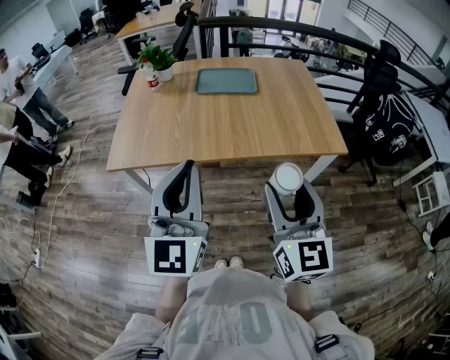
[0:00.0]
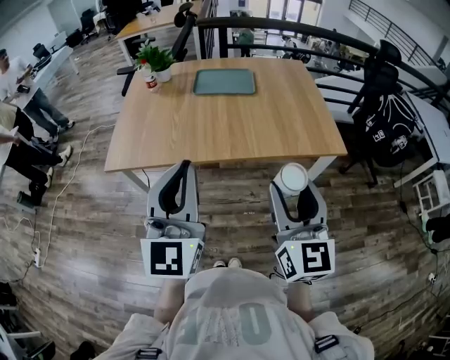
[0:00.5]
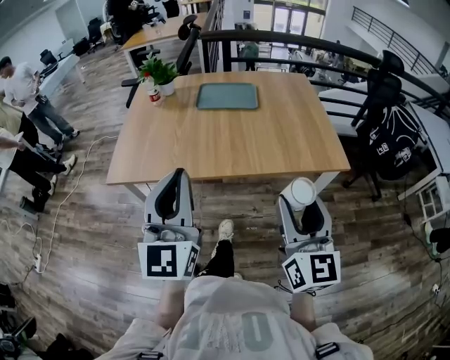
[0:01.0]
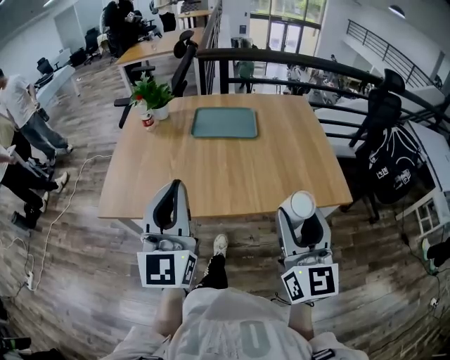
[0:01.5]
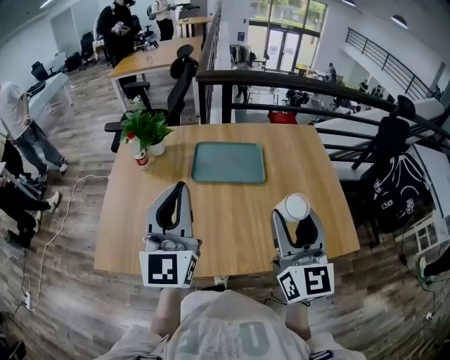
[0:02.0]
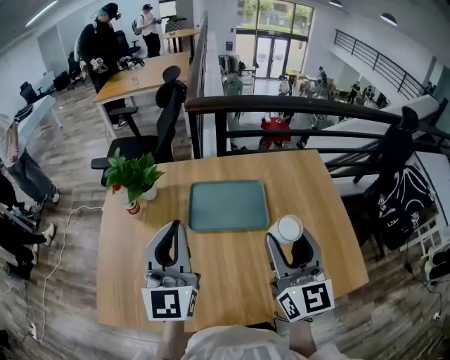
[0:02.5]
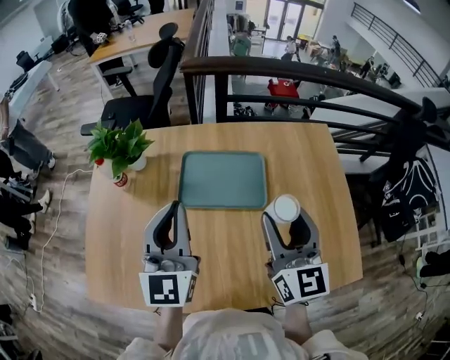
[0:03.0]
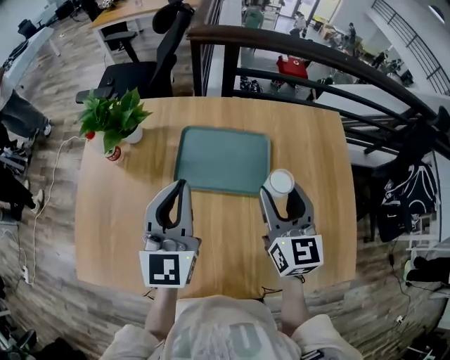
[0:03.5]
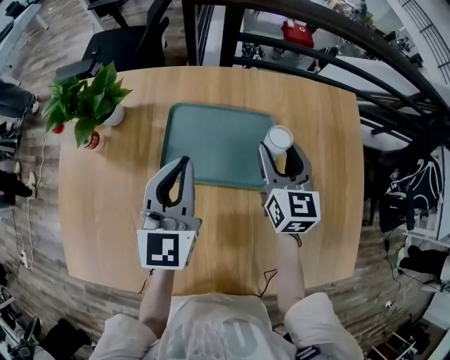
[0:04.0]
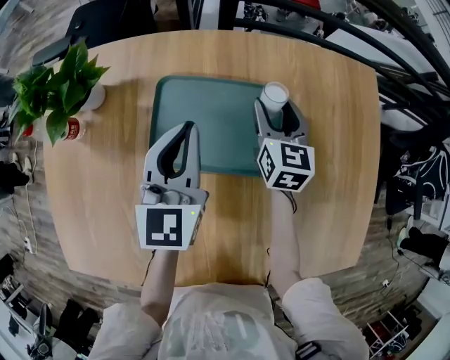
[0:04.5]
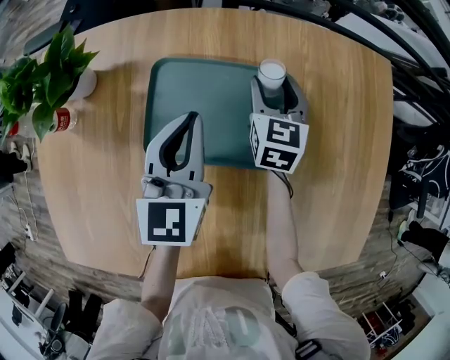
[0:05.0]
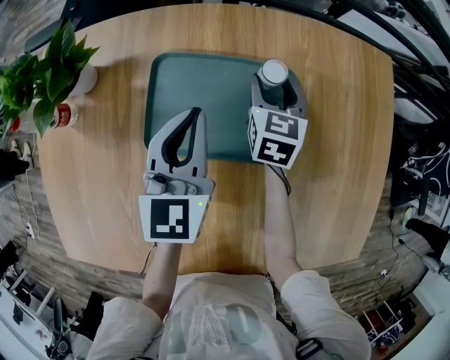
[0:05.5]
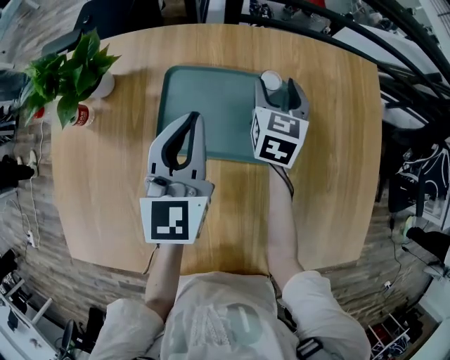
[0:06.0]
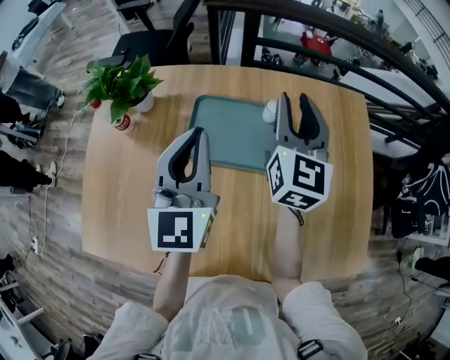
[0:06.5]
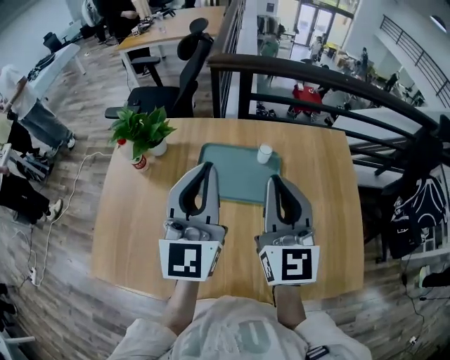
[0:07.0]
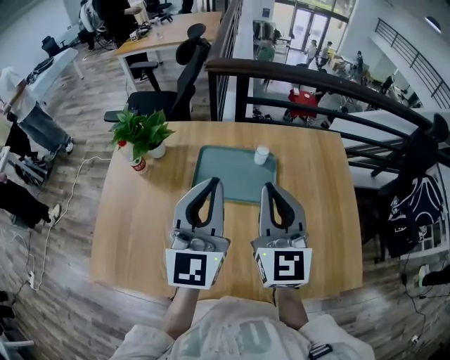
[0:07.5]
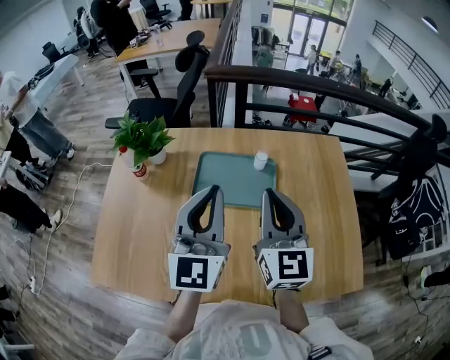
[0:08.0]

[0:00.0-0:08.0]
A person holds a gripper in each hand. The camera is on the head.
0:00.0 to 0:02.0: The grippers both shift forward by approximately 35 cm.
0:02.0 to 0:04.0: Both grippers travel together forward and downward, roughly 40 cm. The right gripper swivels approximately 30 degrees. Meanwhile the left gripper swivels roughly 30 degrees.
0:04.0 to 0:06.0: The left gripper reaches approximately 10 cm downward, then returns, while the right gripper is displaced forward and downward by approximately 10 cm.
0:06.0 to 0:08.0: The left gripper goes approximately 25 cm upward and backward, and turns by about 20 degrees, while the right gripper shifts roughly 35 cm backward and upward, swivels approximately 30 degrees, and closes its fingers.

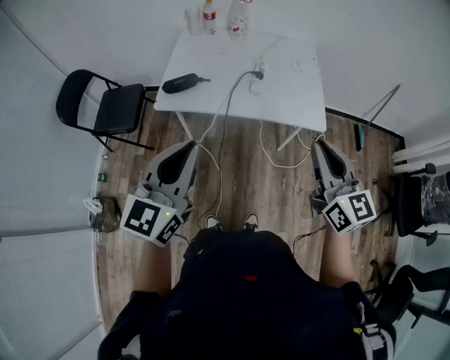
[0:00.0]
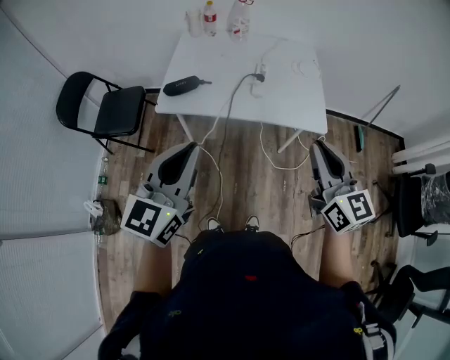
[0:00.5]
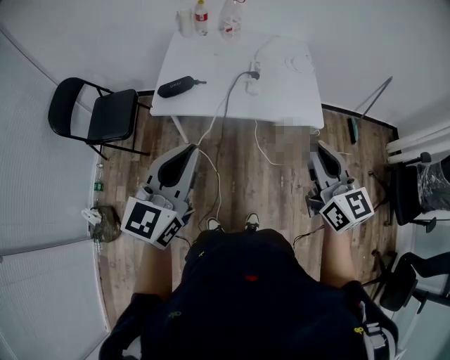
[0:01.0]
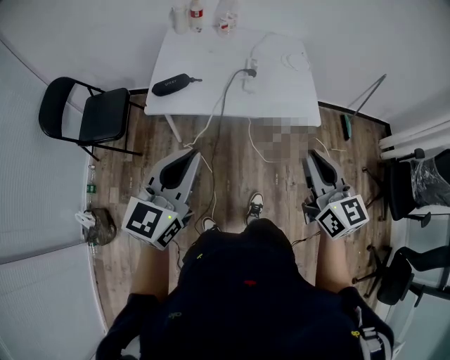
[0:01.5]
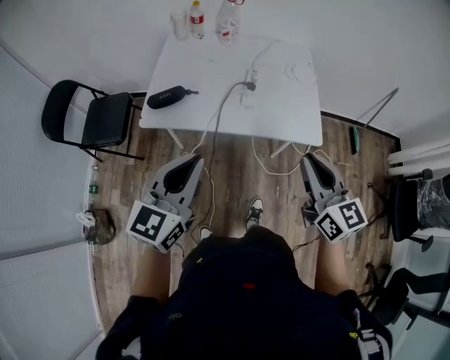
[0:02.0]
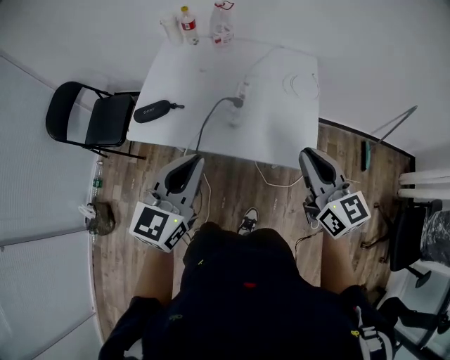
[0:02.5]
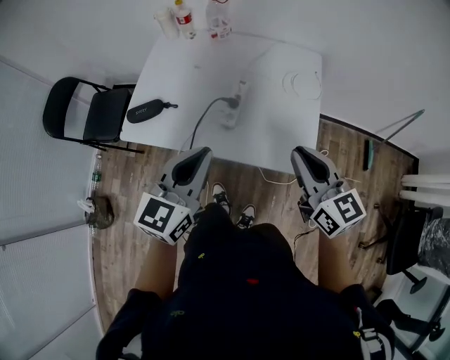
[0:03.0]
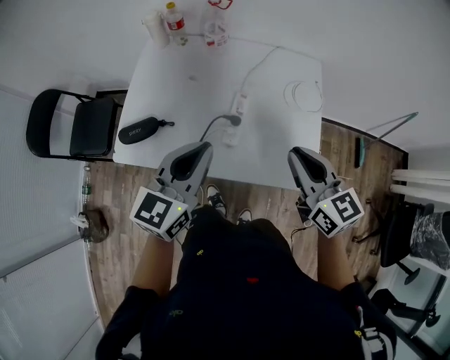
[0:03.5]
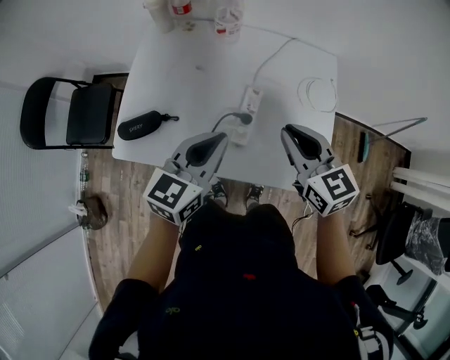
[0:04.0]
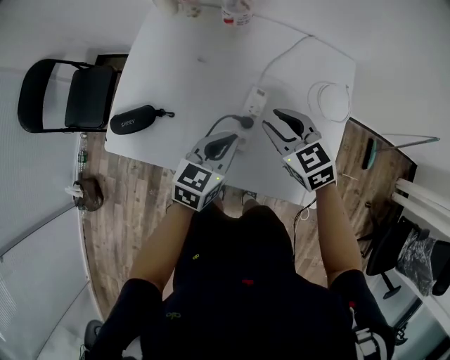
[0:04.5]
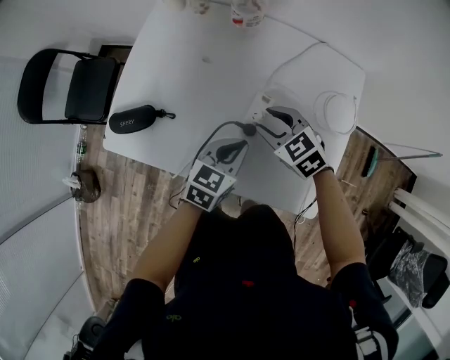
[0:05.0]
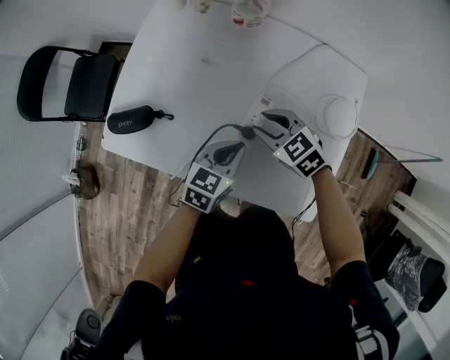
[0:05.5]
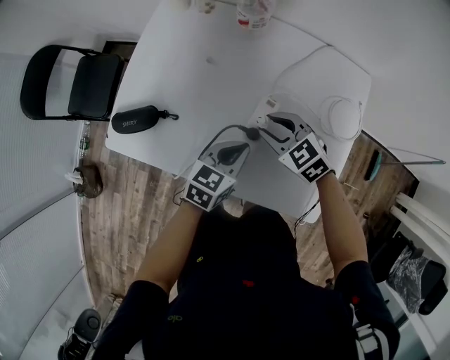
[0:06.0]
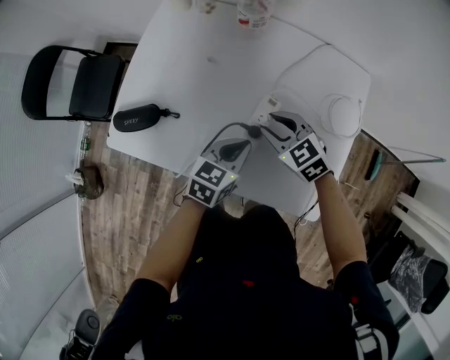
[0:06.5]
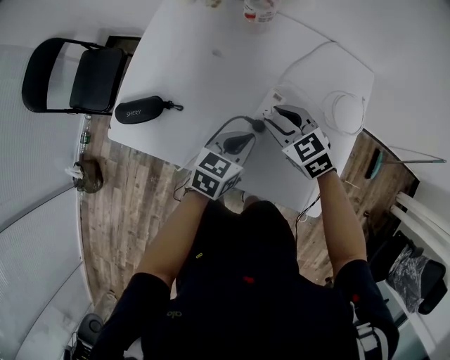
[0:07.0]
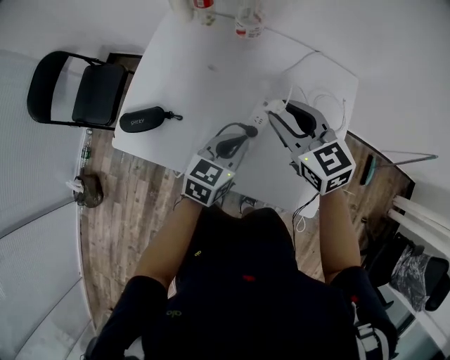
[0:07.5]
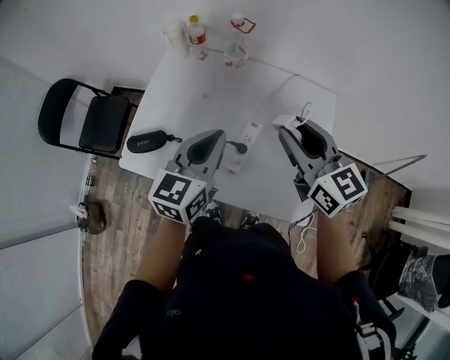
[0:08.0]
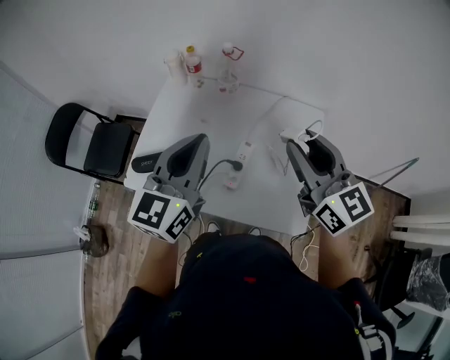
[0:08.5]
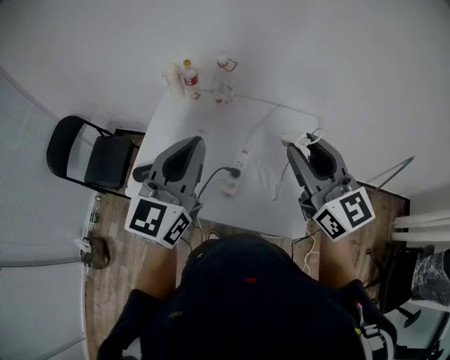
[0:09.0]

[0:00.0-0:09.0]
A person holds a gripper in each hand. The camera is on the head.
0:00.0 to 0:02.0: The right gripper heads forward, covering some 5 cm; the left gripper moves forward and downward, about 10 cm.
0:02.0 to 0:04.5: The left gripper goes about 40 cm forward, downward and to the right, and turns by some 20 degrees. The right gripper goes roughly 50 cm forward and downward, and changes its angle by about 40 degrees.
0:04.5 to 0:07.0: The grippers both shift downward by some 5 cm.
0:07.0 to 0:09.0: Both grippers travel together upward, roughly 40 cm. The left gripper points its fingers some 40 degrees further upward, while the right gripper tilts its fingers some 40 degrees upward.

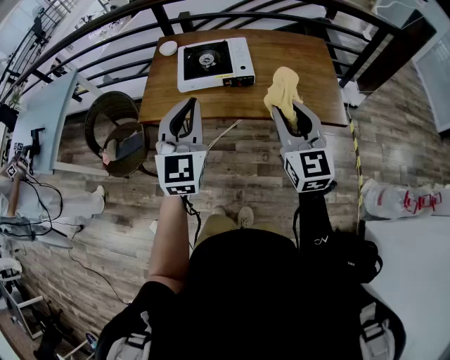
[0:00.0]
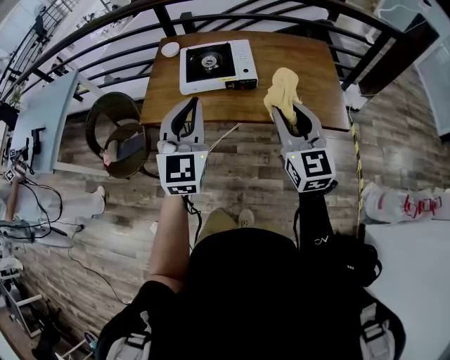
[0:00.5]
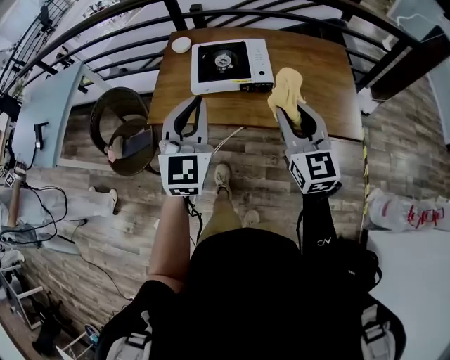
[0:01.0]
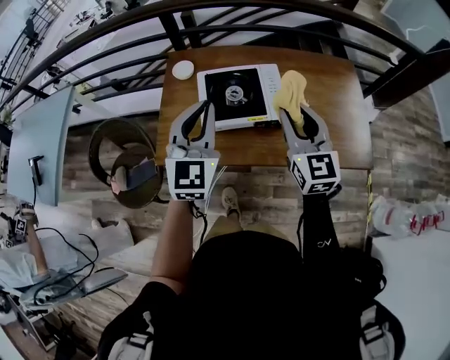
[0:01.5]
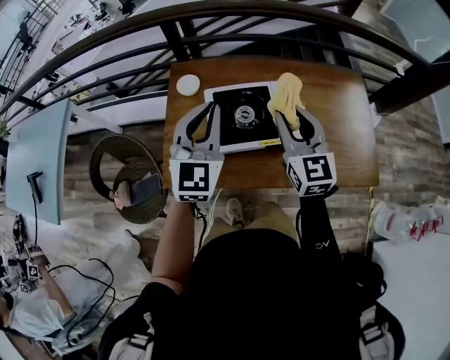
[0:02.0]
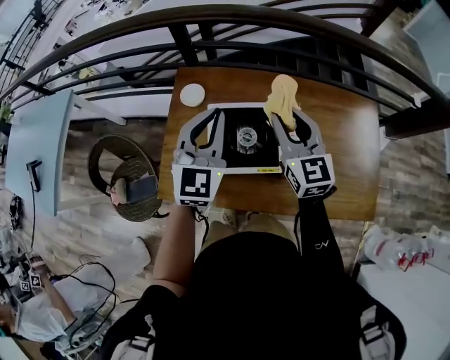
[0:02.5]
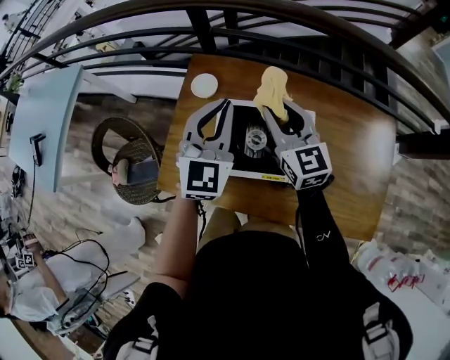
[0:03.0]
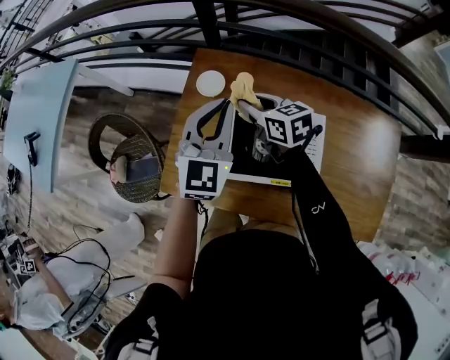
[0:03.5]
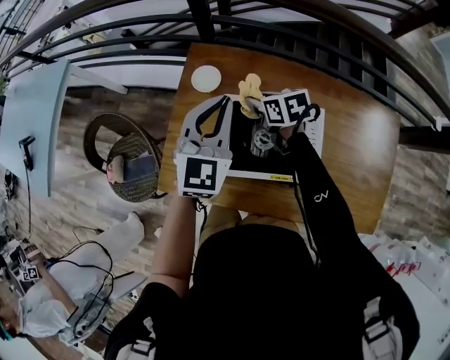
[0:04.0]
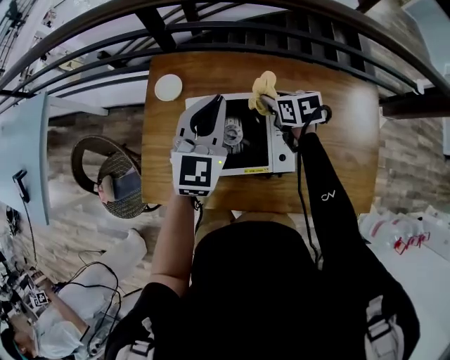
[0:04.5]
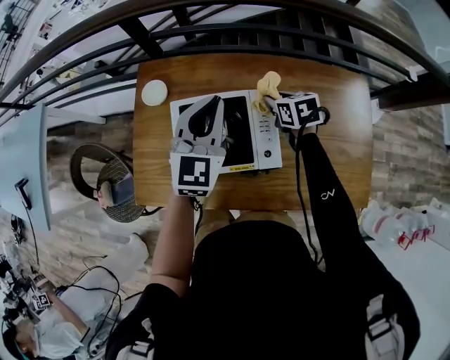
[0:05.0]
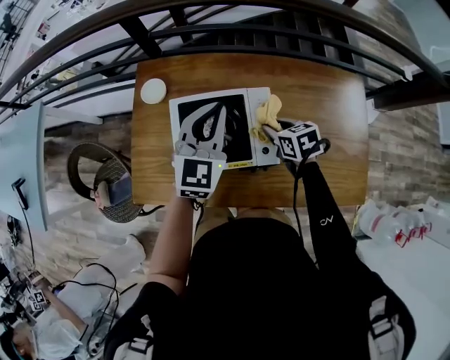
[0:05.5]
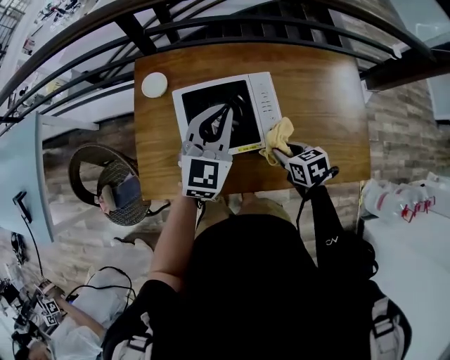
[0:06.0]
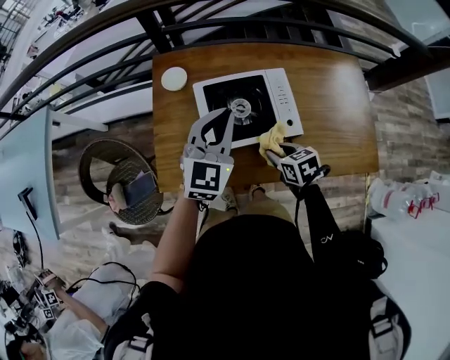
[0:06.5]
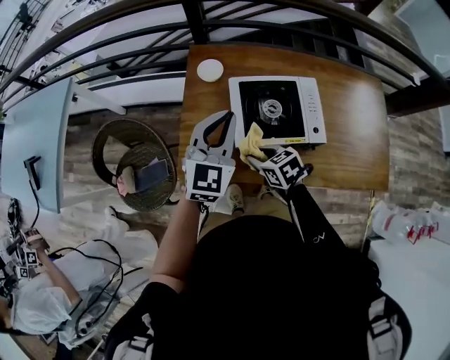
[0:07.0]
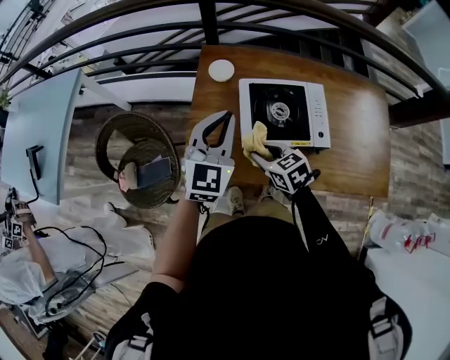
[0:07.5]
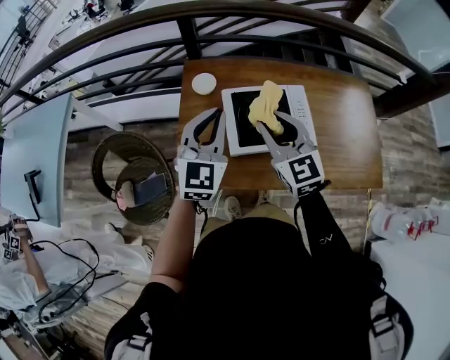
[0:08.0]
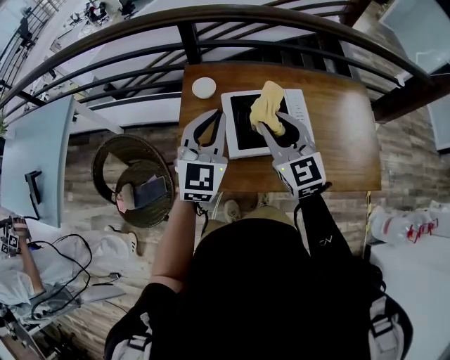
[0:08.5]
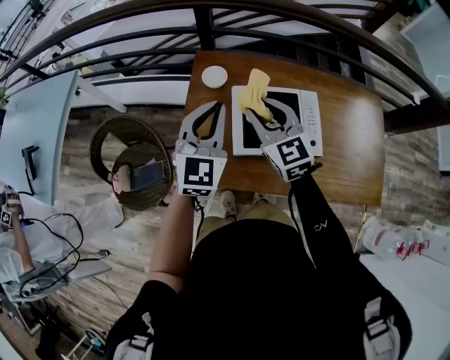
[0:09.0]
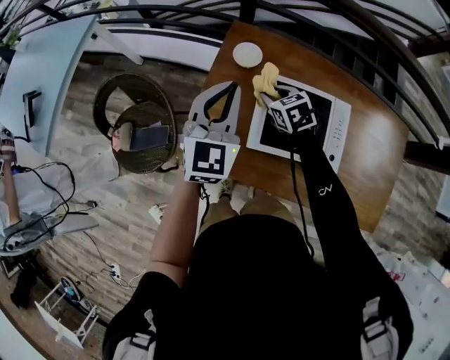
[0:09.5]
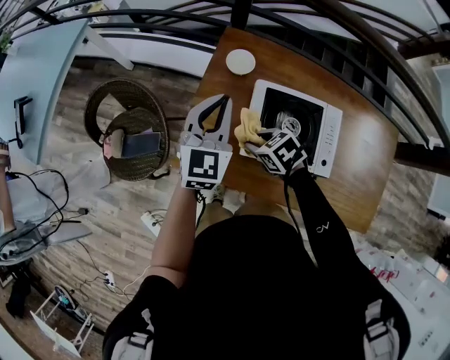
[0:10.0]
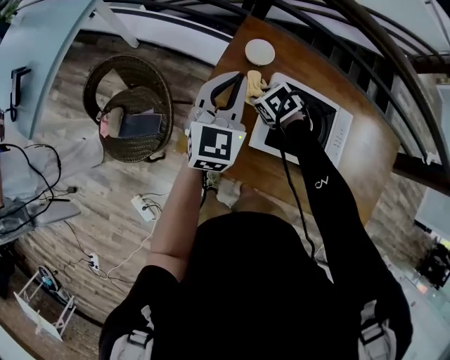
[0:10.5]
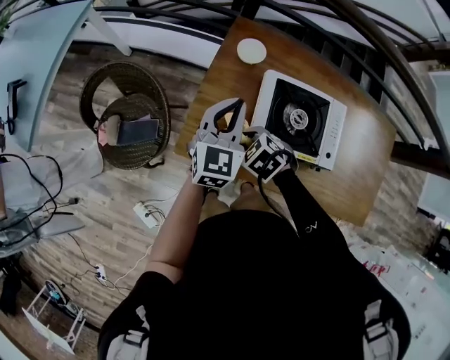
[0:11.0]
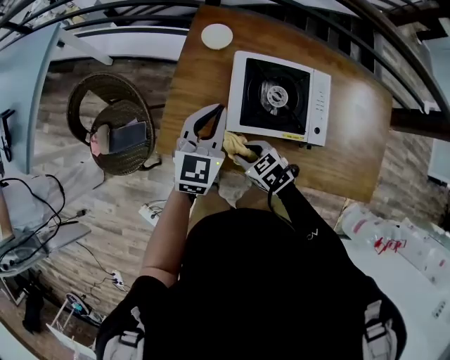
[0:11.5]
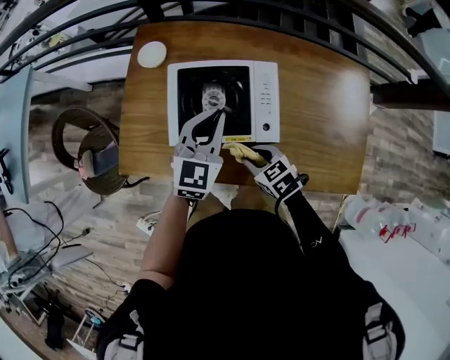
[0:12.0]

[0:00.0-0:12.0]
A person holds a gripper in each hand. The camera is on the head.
0:00.0 to 0:02.0: The grippers both shift forward by roughly 35 cm.
0:02.0 to 0:04.0: The right gripper ends up roughly 30 cm from where it was, and tilts its fingers approximately 40 degrees downward, while the left gripper shifts by about 15 cm.
0:04.0 to 0:06.0: The right gripper shifts some 30 cm backward and to the right. The left gripper is displaced to the right and backward by approximately 15 cm.
0:06.0 to 0:08.0: The right gripper travels upward and to the left by approximately 30 cm, and tilts its fingers roughly 40 degrees upward. The left gripper travels to the left by approximately 15 cm.
0:08.0 to 0:10.0: The right gripper heads downward, covering some 20 cm, and tilts its fingers roughly 50 degrees downward, while the left gripper shifts by about 10 cm.
0:10.0 to 0:12.0: The left gripper travels to the right and backward by approximately 25 cm; the right gripper travels backward and to the right by roughly 25 cm.
